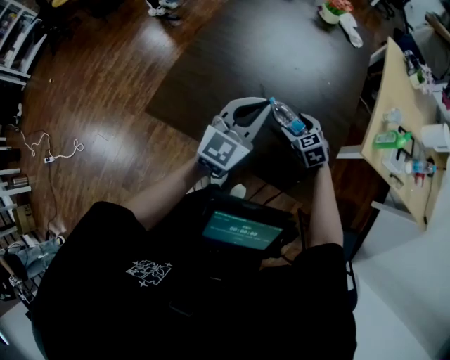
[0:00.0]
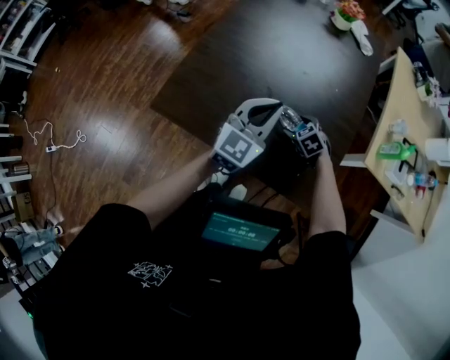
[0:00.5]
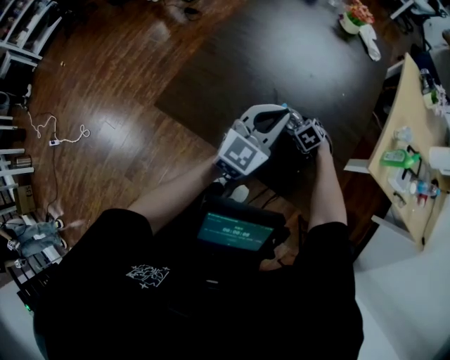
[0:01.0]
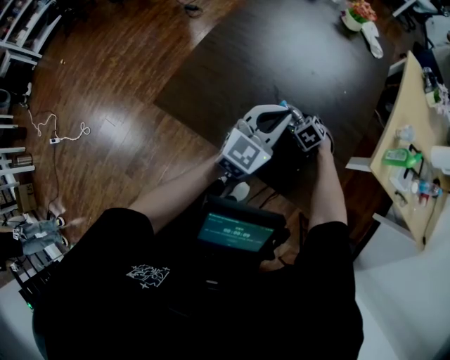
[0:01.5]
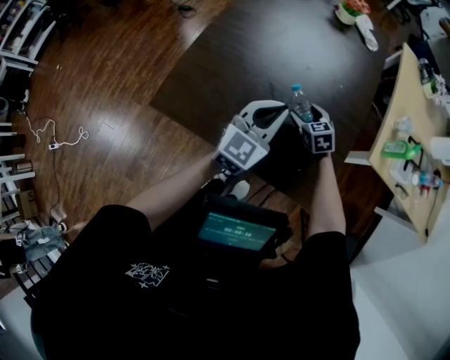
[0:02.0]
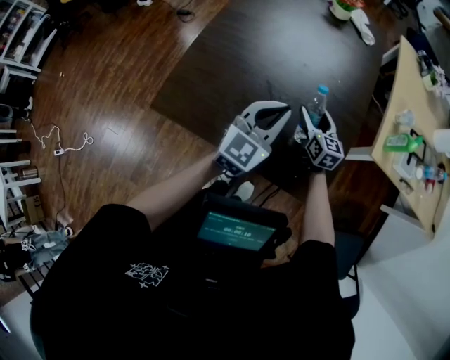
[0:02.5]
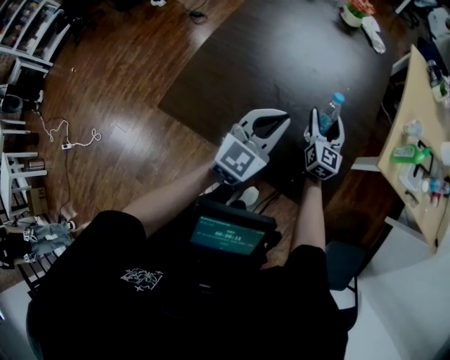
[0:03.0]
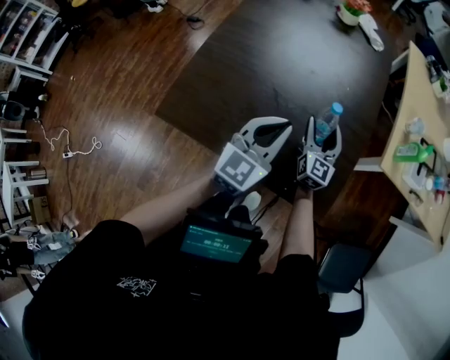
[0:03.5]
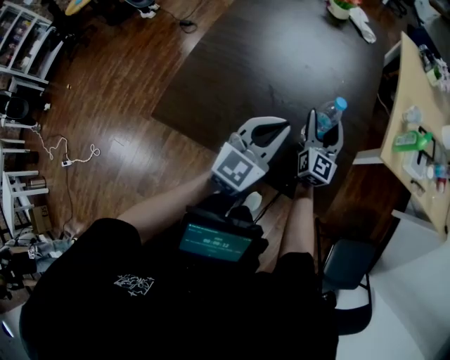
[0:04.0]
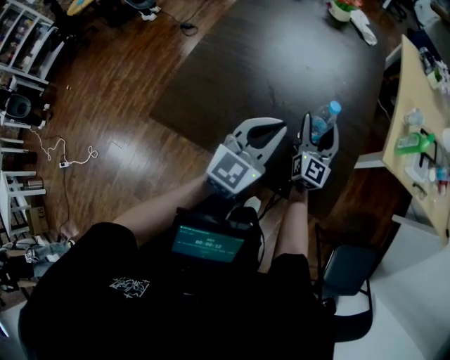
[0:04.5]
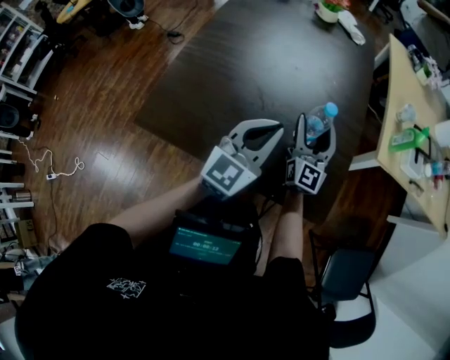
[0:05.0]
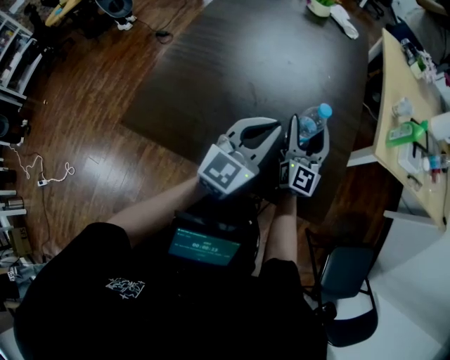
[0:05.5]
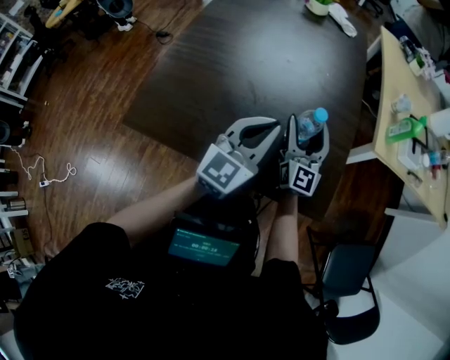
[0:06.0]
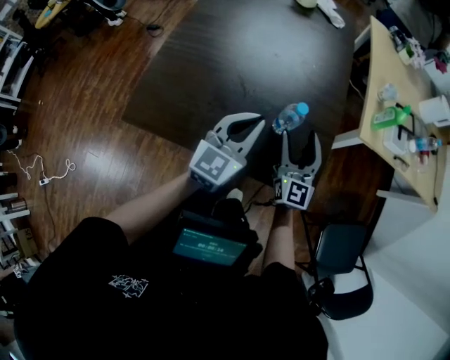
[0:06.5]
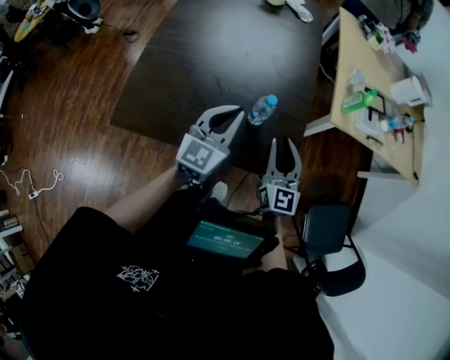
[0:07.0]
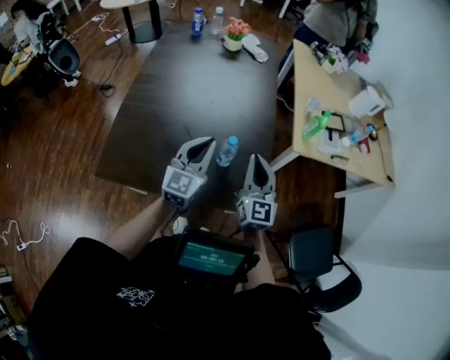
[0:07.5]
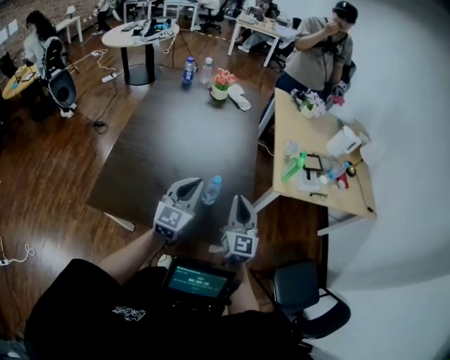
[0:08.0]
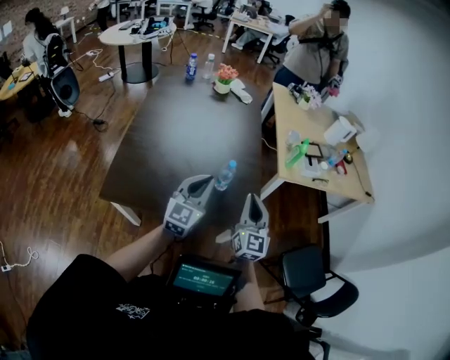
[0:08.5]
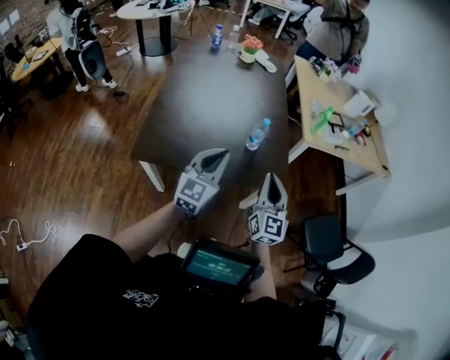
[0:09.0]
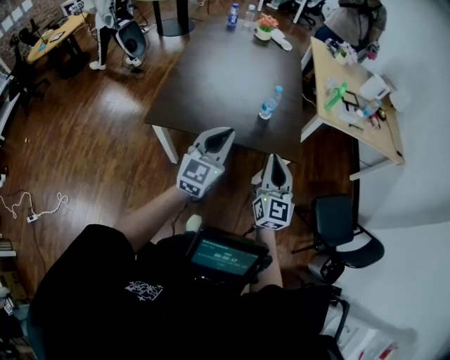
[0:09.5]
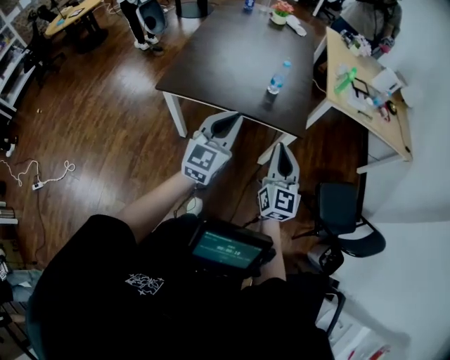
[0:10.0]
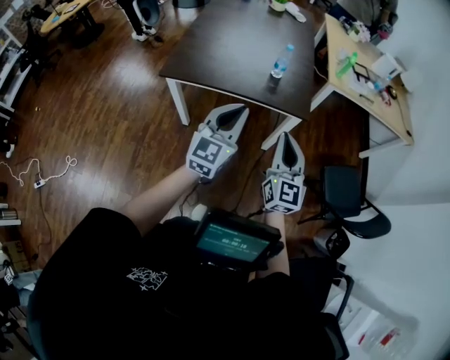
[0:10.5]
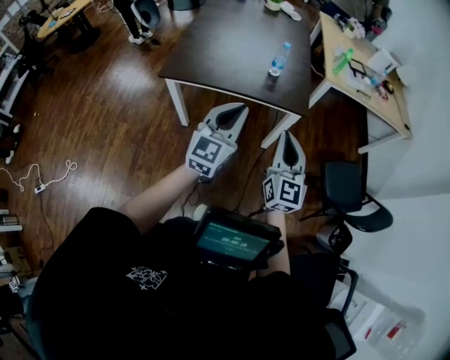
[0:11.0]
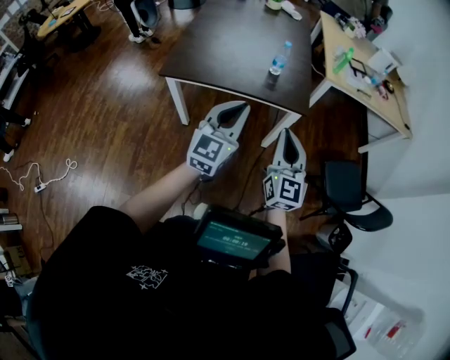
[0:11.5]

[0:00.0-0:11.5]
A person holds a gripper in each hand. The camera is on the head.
0:00.0 to 0:02.0: The right gripper is displaced forward by approximately 5 cm.
0:02.0 to 0:04.0: The right gripper travels upward and to the right by roughly 15 cm, and points its fingers about 50 degrees further upward. Meanwhile the left gripper moves some 5 cm.
0:04.0 to 0:06.0: The left gripper goes approximately 5 cm downward.
0:06.0 to 0:07.5: The right gripper is displaced upward, backward and to the right by about 20 cm, and closes its fingers. The left gripper travels upward by about 10 cm.
0:07.5 to 0:09.5: The grippers both shift backward by some 30 cm.
0:09.5 to 0:11.5: Both grippers travel together backward, about 15 cm.

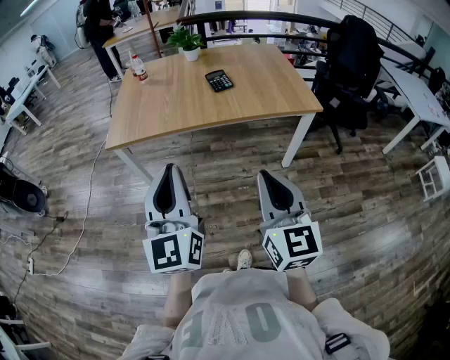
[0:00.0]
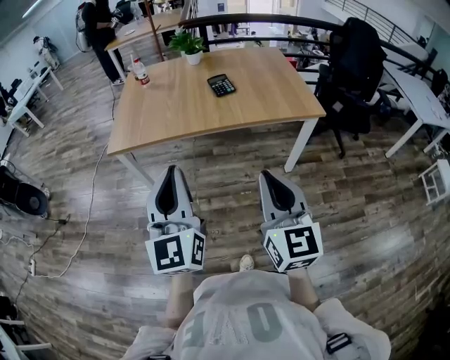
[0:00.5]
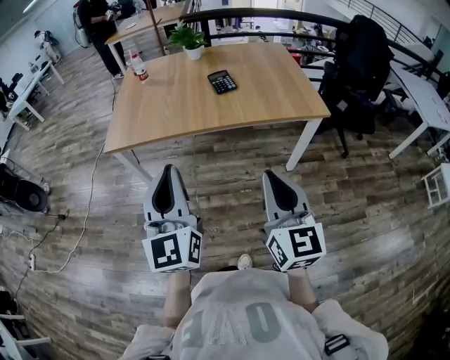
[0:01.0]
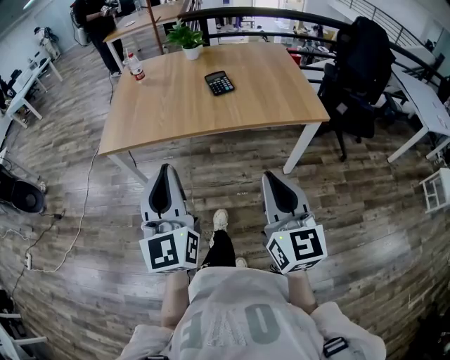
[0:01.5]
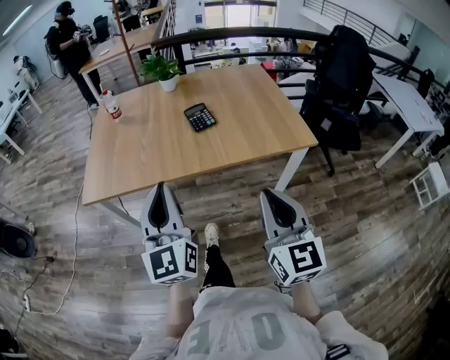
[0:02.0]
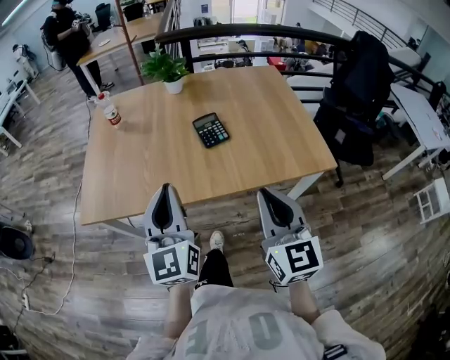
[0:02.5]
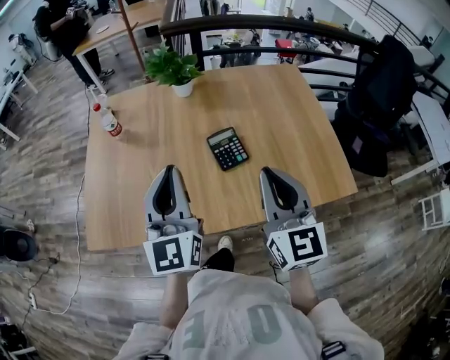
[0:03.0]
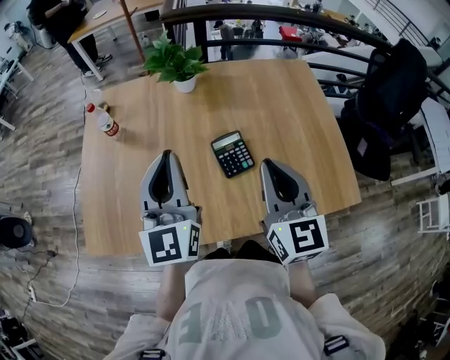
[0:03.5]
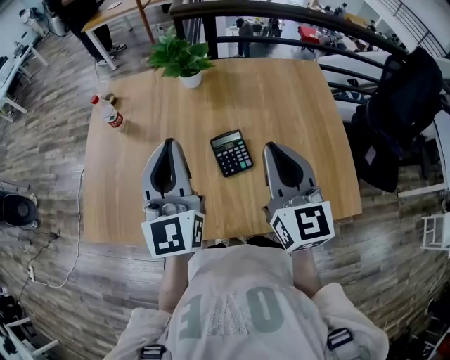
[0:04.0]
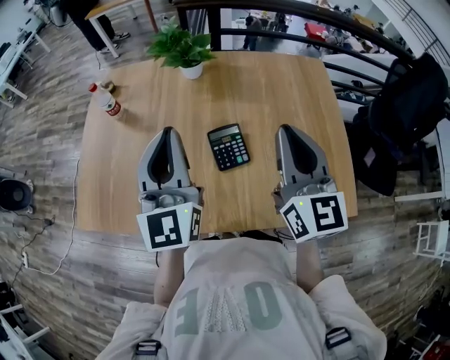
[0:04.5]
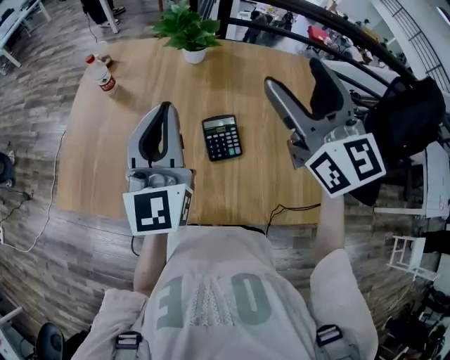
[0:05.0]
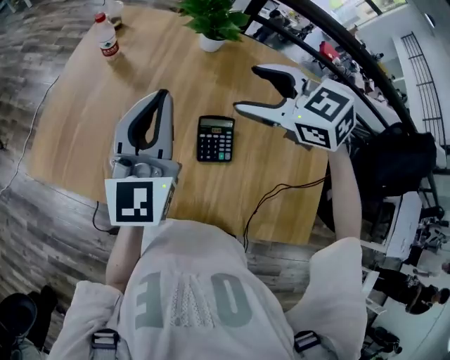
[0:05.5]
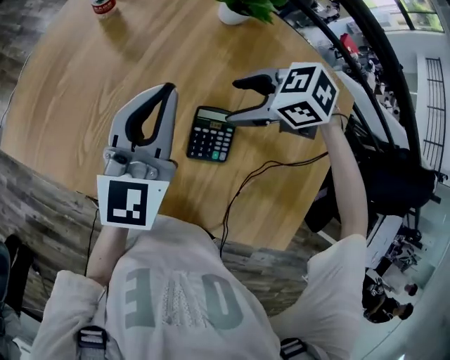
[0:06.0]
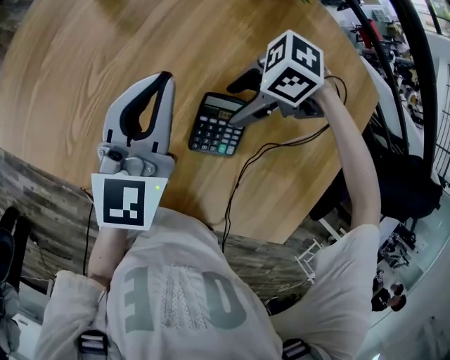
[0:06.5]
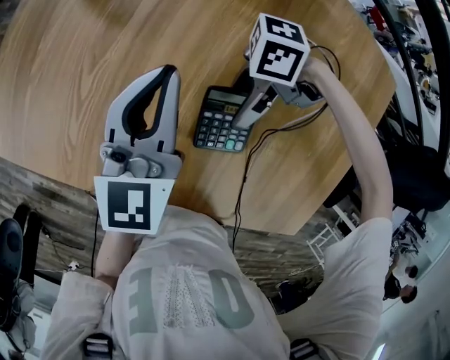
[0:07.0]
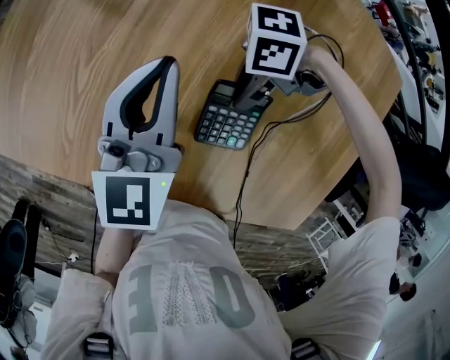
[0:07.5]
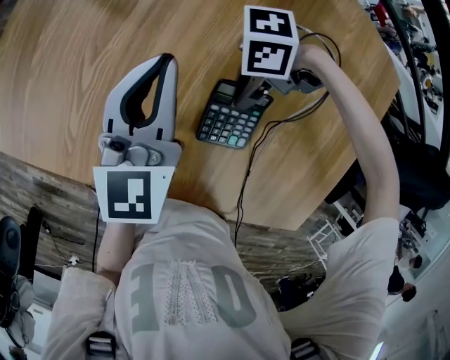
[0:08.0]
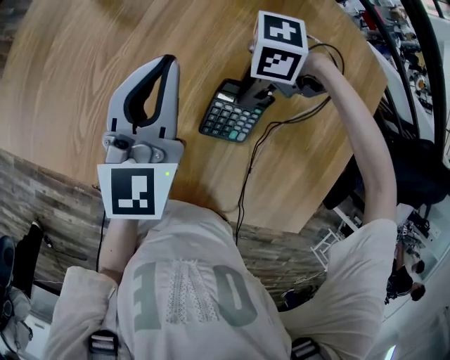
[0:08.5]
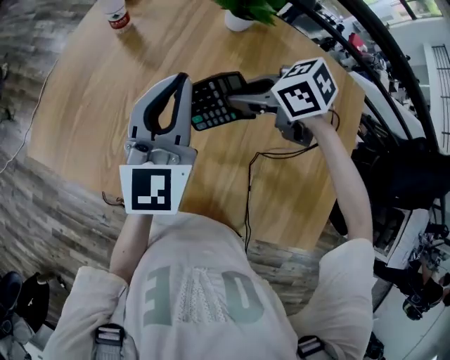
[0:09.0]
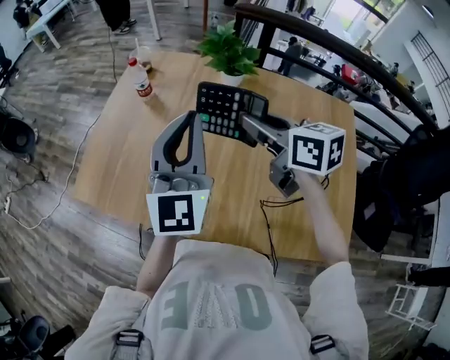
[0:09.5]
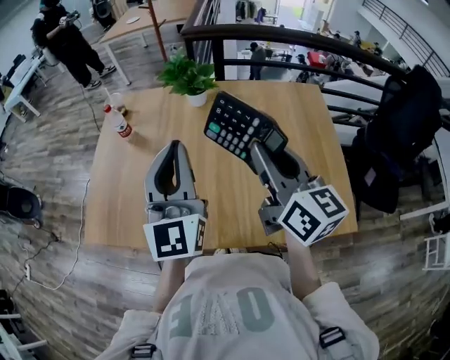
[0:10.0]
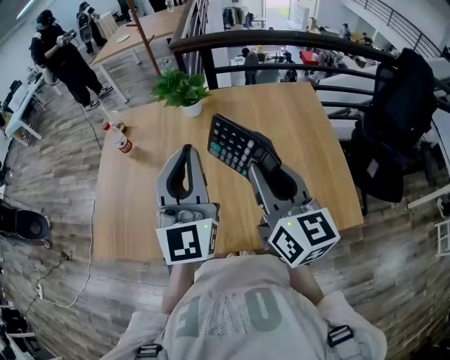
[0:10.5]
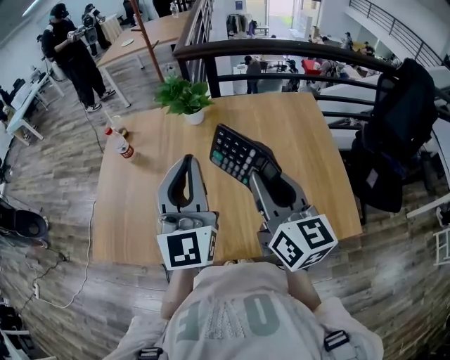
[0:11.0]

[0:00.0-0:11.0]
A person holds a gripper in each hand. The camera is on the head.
0:00.0 to 0:02.0: The right gripper is displaced forward and to the right by approximately 20 cm. The left gripper shifts about 20 cm forward.
0:02.0 to 0:03.5: Both grippers are carried forward, approximately 40 cm.
0:03.5 to 0:05.5: The left gripper ends up approximately 5 cm from where it was. The right gripper goes upward and returns, about 10 cm each way, angles its fingers downward, by roughly 30 degrees, and opens.
0:05.5 to 0:07.5: Both grippers move downward, some 25 cm. The left gripper changes its angle by approximately 20 degrees; the right gripper rotates roughly 90 degrees, and closes its fingers.
0:07.5 to 0:09.0: Both grippers move upward, about 15 cm. The right gripper rotates about 60 degrees.
0:09.0 to 0:11.0: The left gripper moves about 20 cm, and rotates roughly 20 degrees; the right gripper changes place by roughly 30 cm, and points its fingers some 50 degrees further upward.

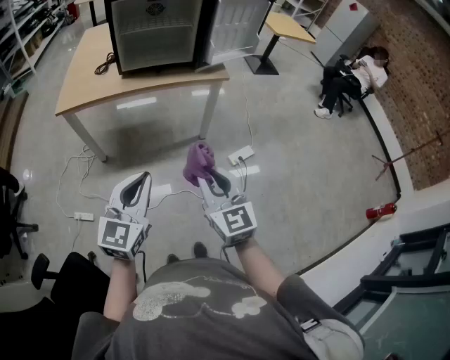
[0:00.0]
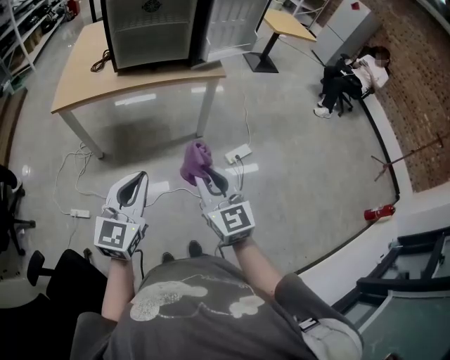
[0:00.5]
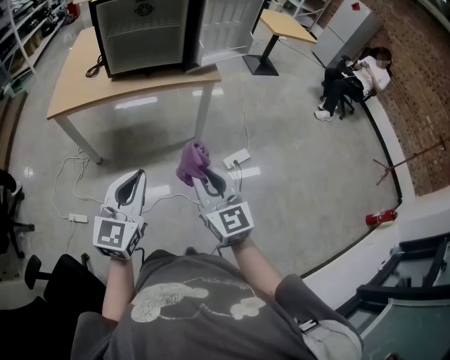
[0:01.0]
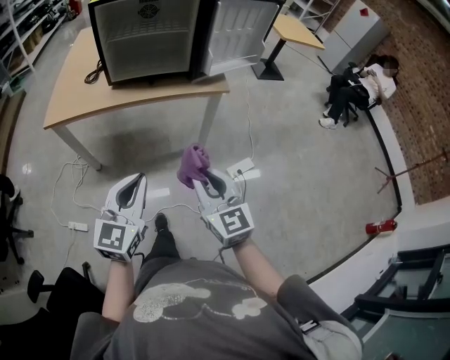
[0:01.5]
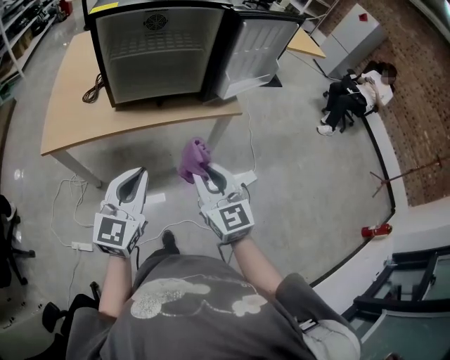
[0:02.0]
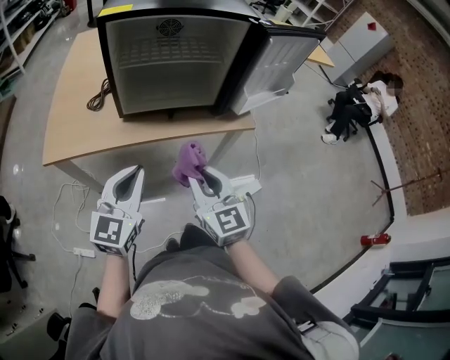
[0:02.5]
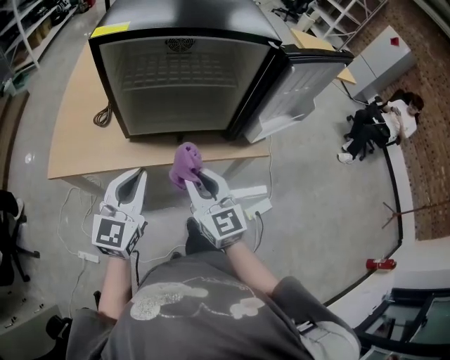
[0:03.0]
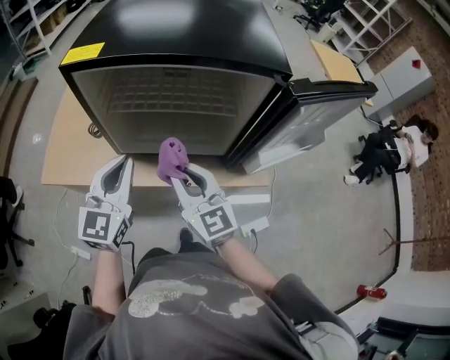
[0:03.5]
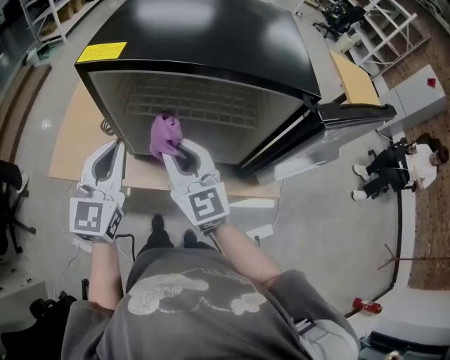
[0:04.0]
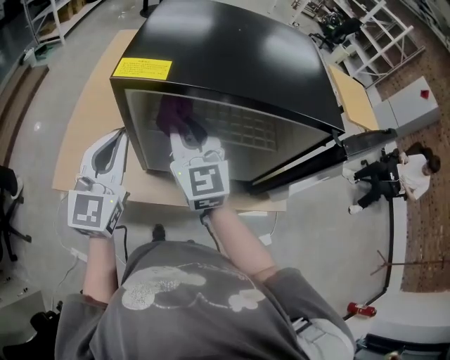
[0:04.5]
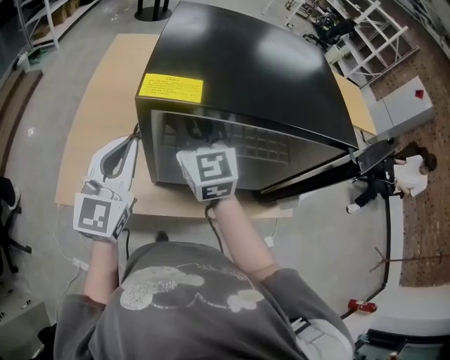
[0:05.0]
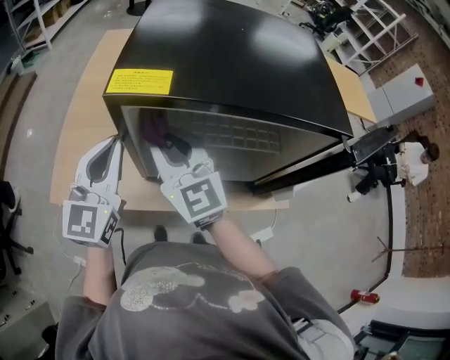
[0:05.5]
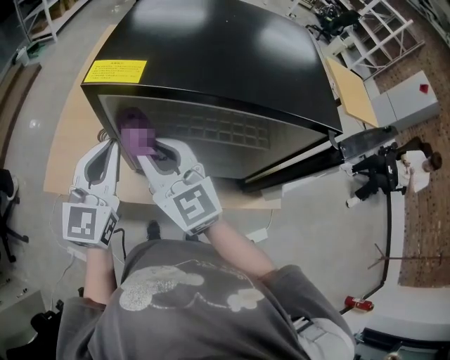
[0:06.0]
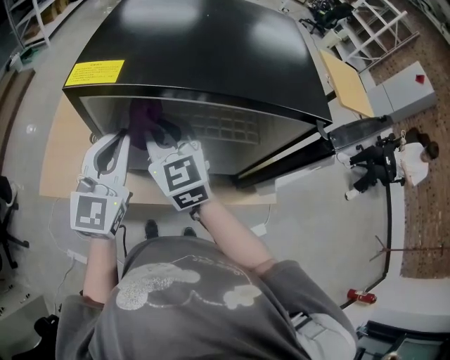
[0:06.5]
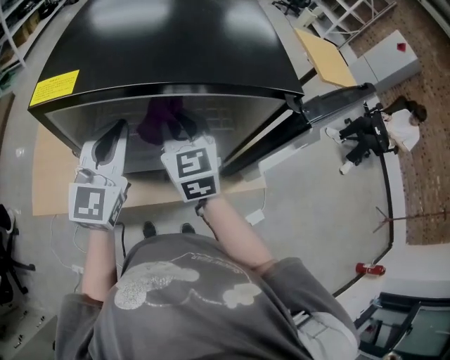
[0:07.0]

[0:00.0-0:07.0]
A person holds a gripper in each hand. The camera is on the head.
0:00.0 to 0:02.0: Both grippers travel together forward, some 25 cm.
0:02.0 to 0:03.5: Both grippers move forward, some 30 cm. The right gripper changes its angle by some 20 degrees.
0:03.5 to 0:05.0: The two grippers go roughly 20 cm forward and to the left.
0:05.0 to 0:07.0: The two grippers go about 15 cm to the right.
